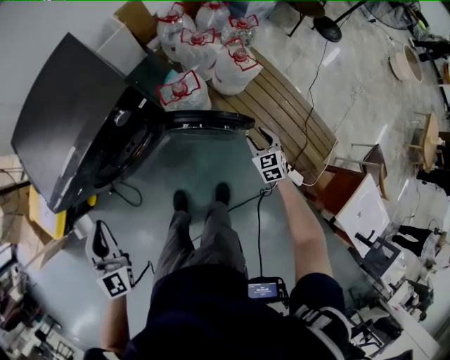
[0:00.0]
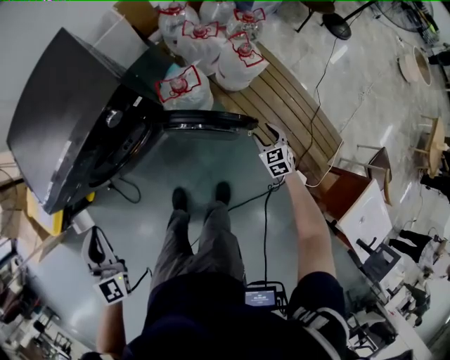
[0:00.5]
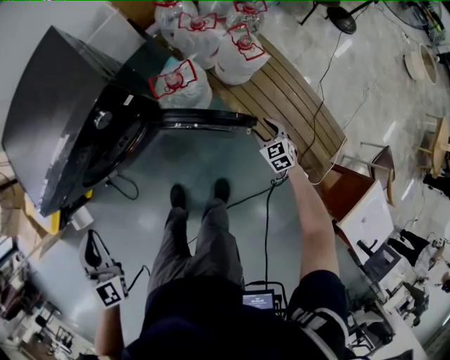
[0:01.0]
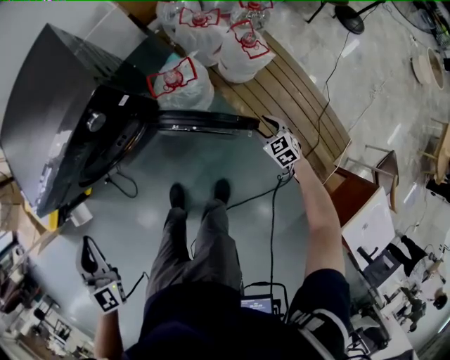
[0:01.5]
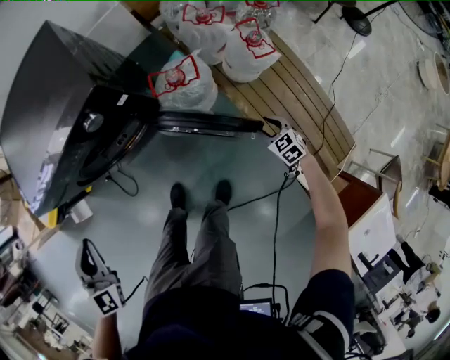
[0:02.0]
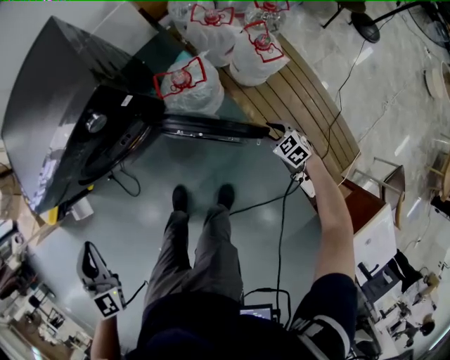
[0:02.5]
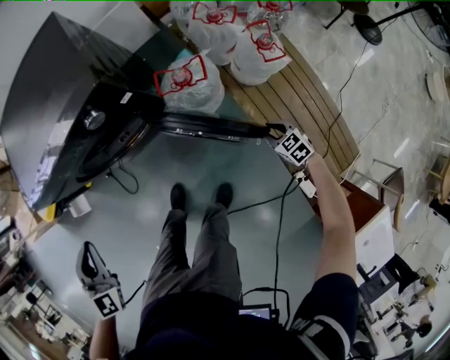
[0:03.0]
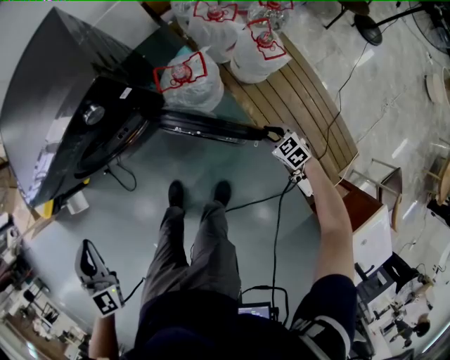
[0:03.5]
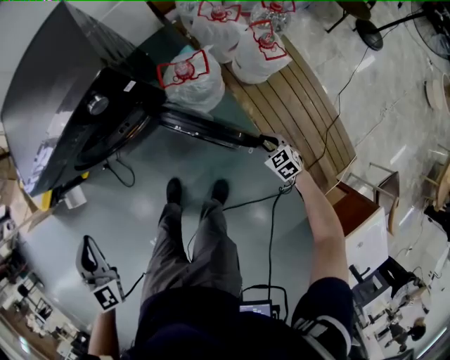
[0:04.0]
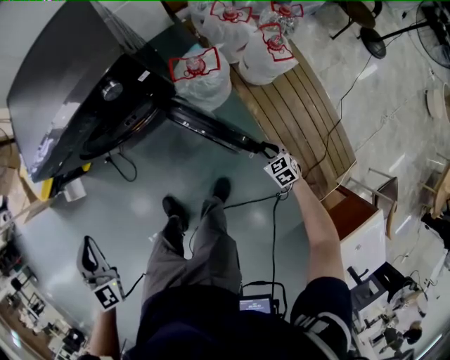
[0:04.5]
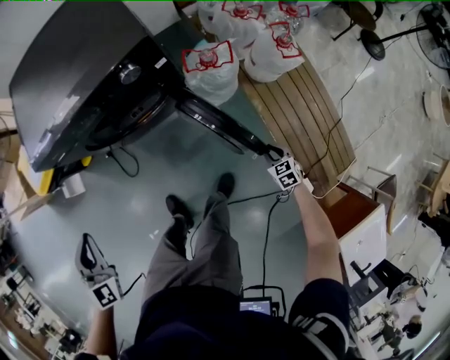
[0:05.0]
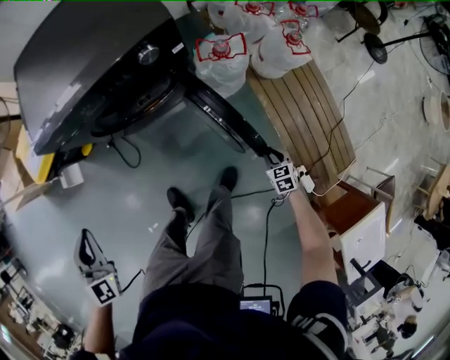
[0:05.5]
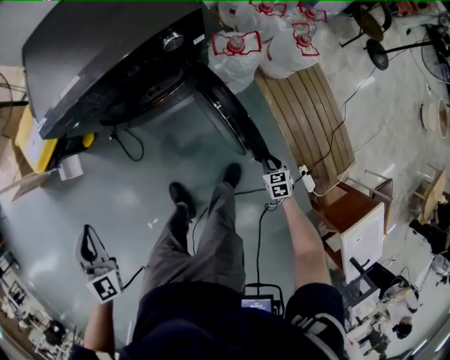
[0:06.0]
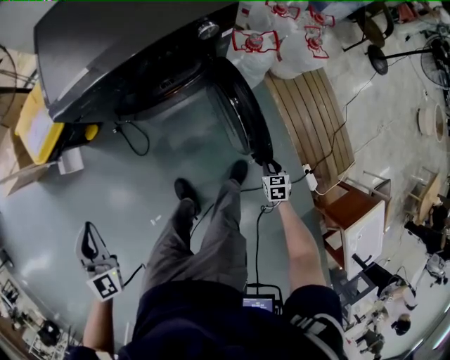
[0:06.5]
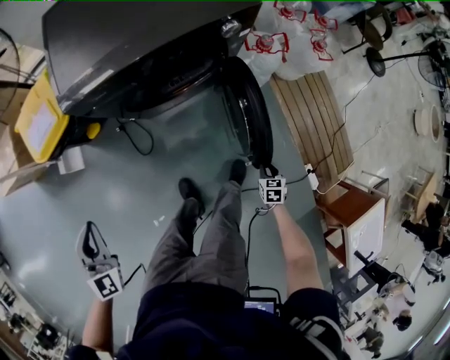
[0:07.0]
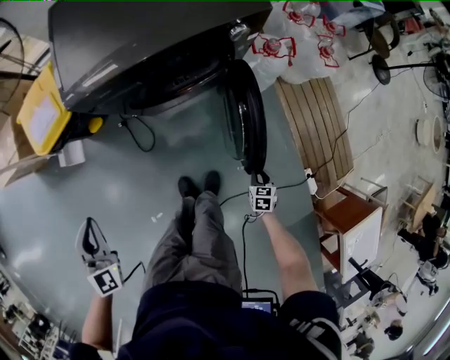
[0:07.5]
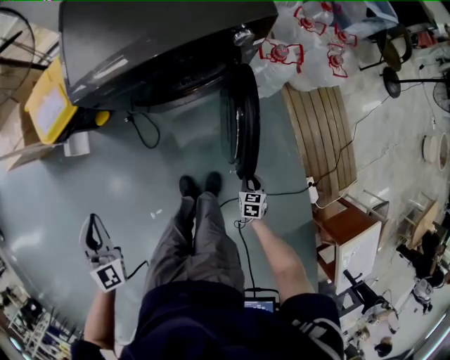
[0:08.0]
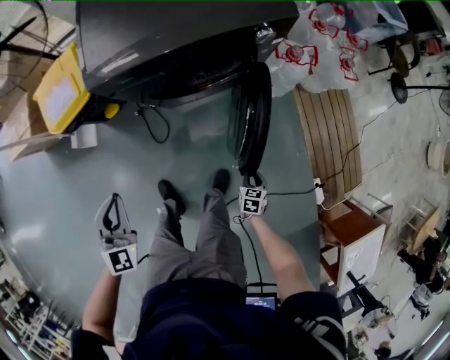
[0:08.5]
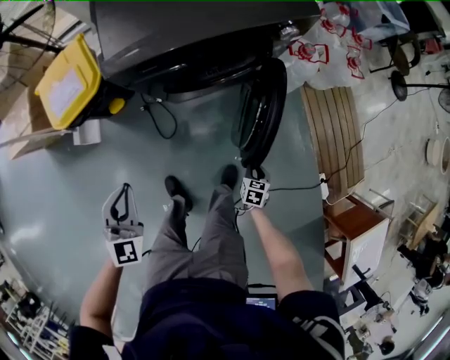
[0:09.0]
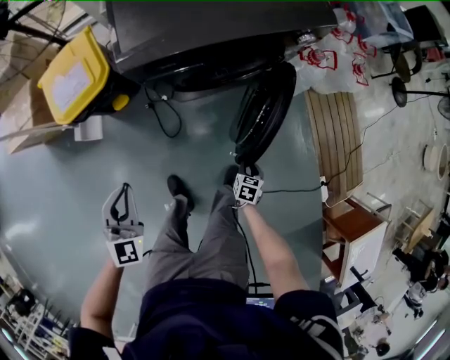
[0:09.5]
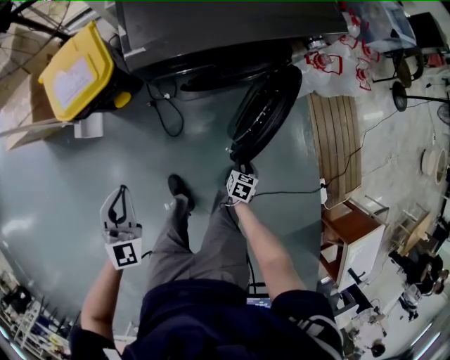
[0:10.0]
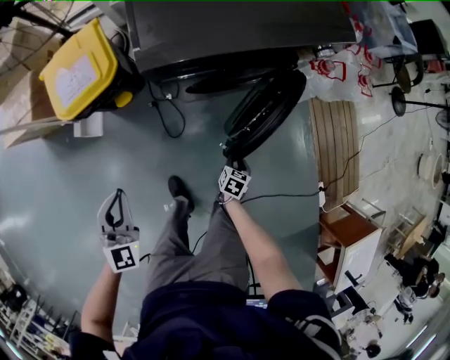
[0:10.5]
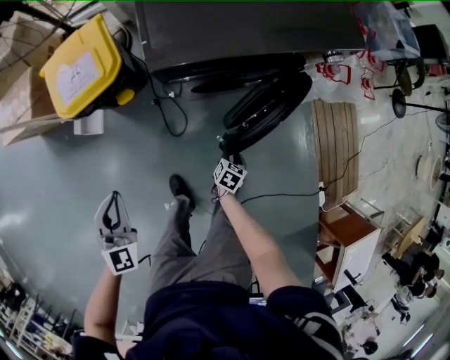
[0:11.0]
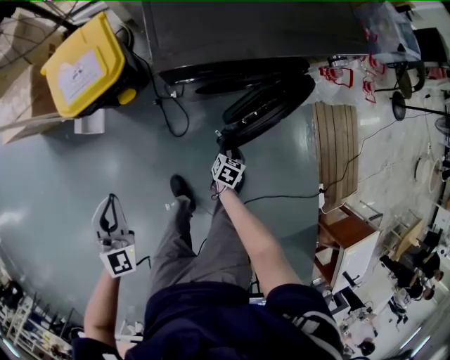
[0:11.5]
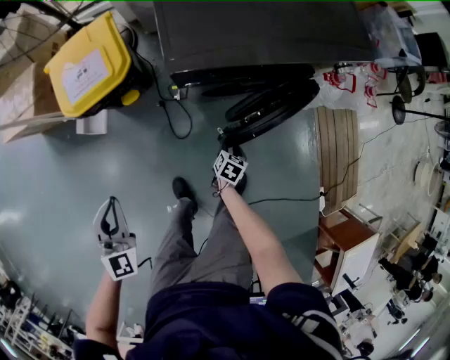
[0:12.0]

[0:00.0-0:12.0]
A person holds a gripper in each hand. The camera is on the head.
0:00.0 to 0:02.0: The right gripper heads downward and to the right, covering approximately 20 cm, and rotates approximately 30 degrees. The left gripper moves downward, some 5 cm.
0:02.0 to 0:04.0: The right gripper moves approximately 5 cm, and closes.
0:04.0 to 0:06.0: The right gripper shifts roughly 25 cm to the left and backward. Meanwhile the left gripper is displaced to the left by roughly 25 cm.
0:06.0 to 0:08.0: The left gripper moves to the left, about 10 cm, while the right gripper heads to the left, covering about 20 cm.
0:08.0 to 0:10.0: The left gripper moves to the left and downward, some 10 cm, while the right gripper goes about 20 cm to the left.
0:10.0 to 0:12.0: The left gripper goes some 10 cm to the left. Meanwhile the right gripper shifts about 15 cm to the left and forward.

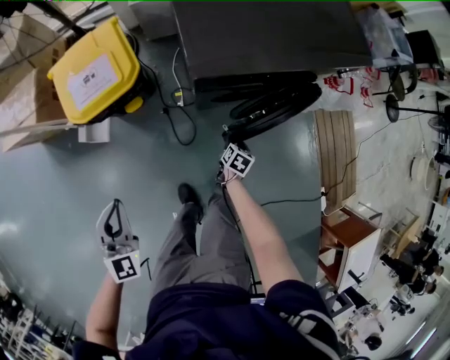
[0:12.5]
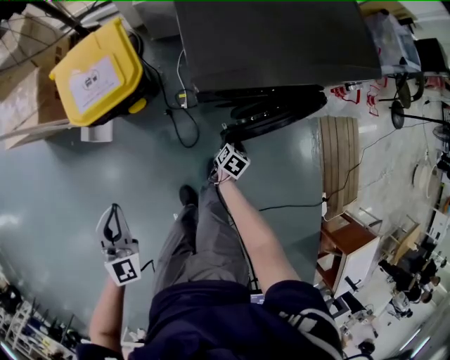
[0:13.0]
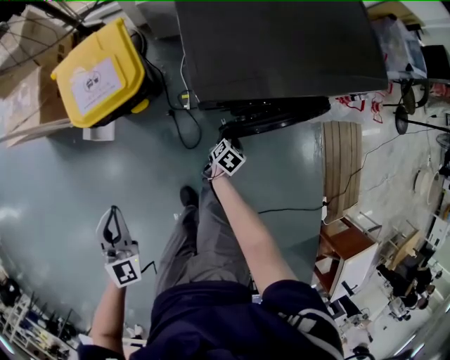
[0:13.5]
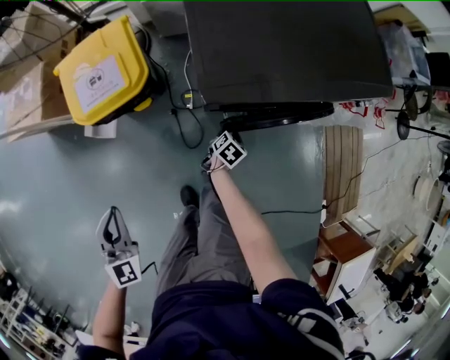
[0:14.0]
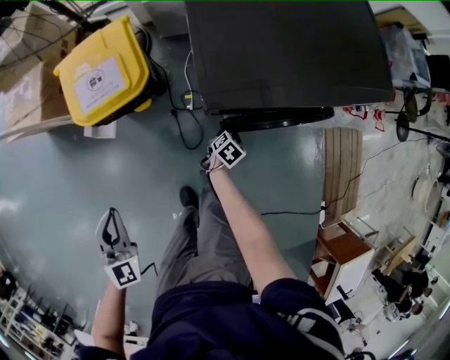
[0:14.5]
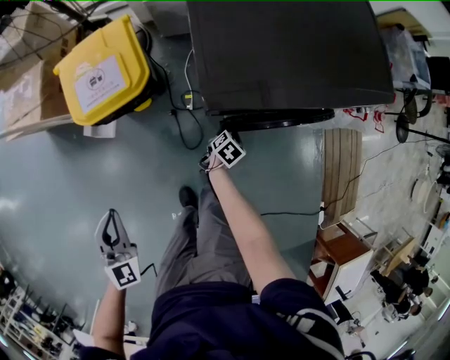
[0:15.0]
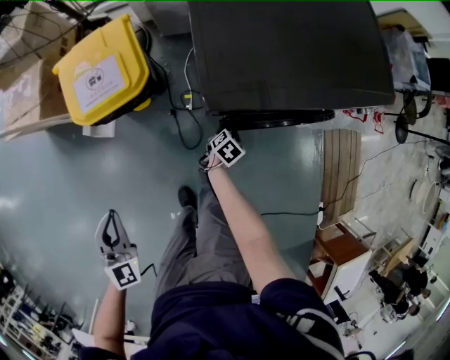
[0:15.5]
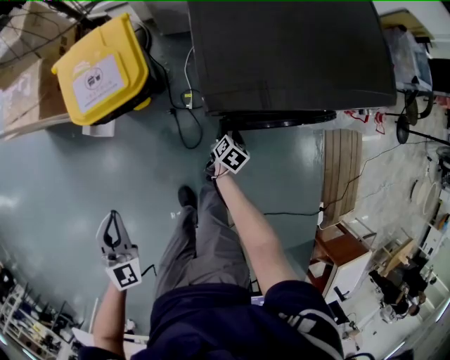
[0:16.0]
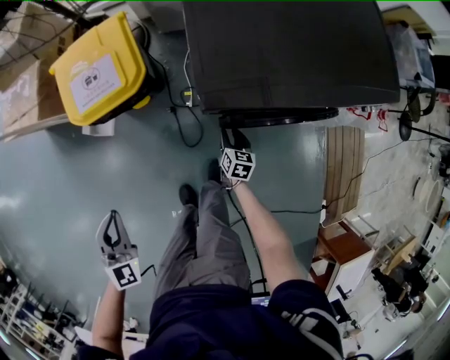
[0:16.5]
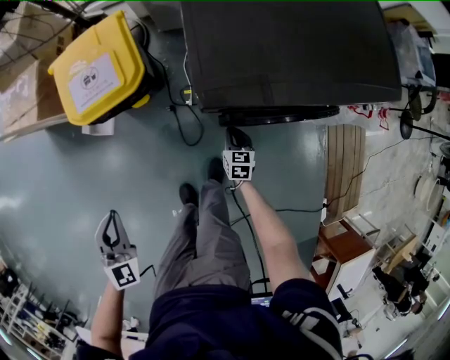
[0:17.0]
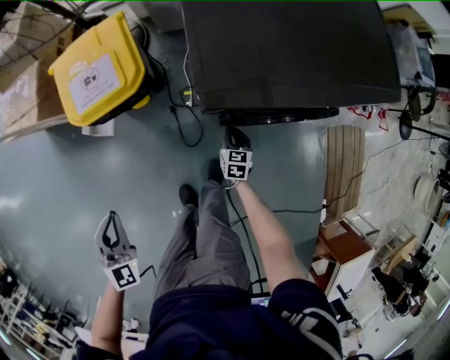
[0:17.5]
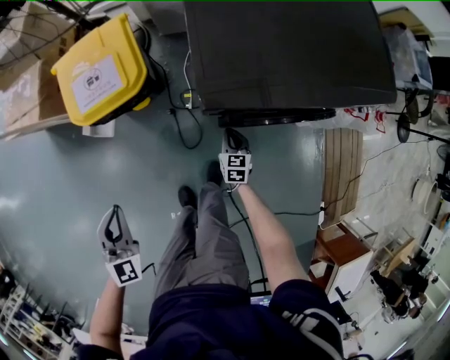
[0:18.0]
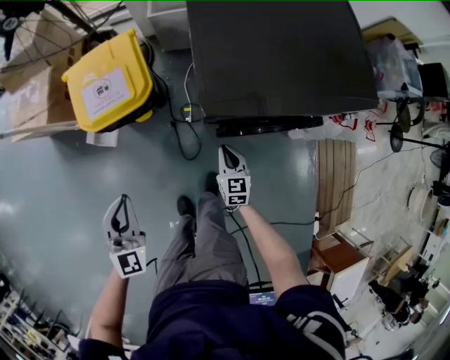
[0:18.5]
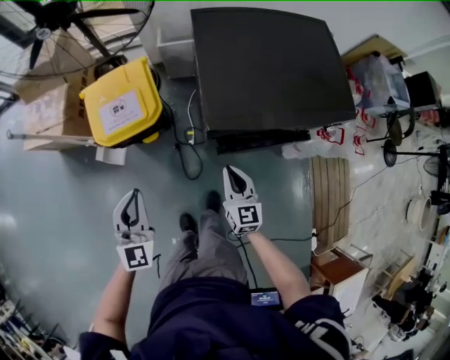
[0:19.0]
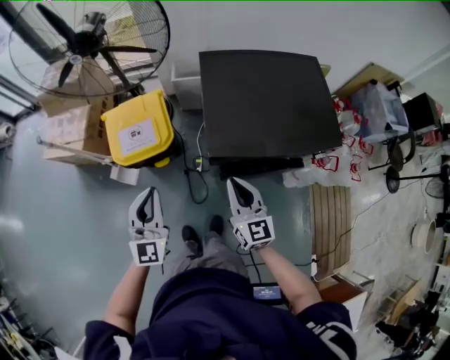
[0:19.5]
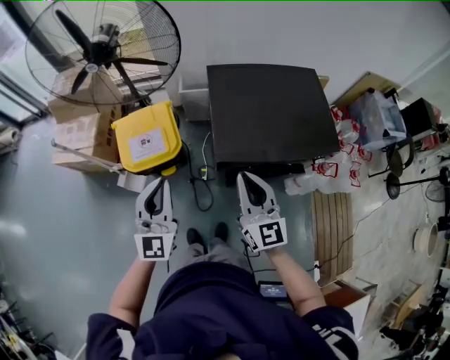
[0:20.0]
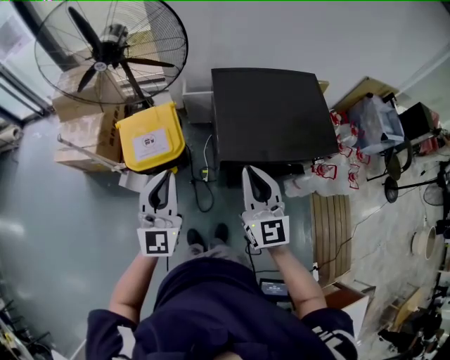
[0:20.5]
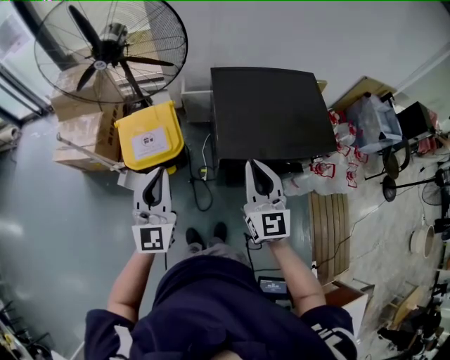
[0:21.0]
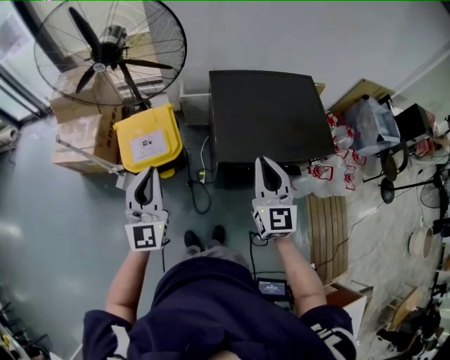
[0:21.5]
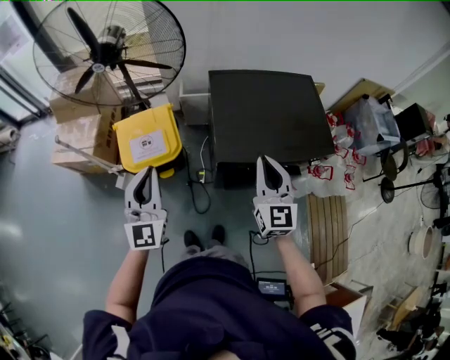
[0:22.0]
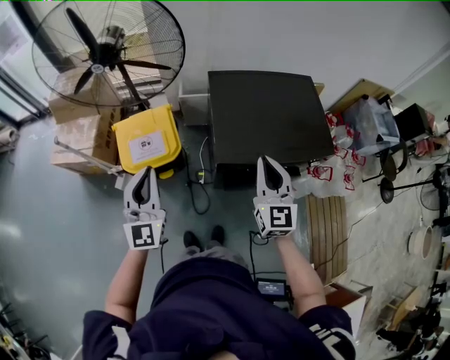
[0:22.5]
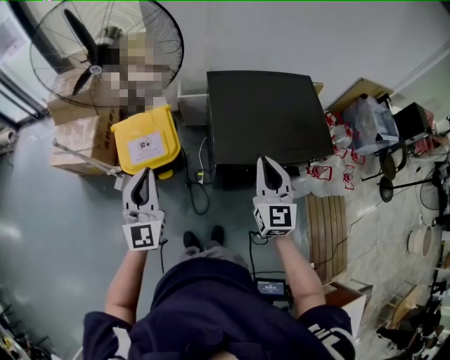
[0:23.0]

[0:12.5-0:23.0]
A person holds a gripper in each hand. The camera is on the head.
0:12.5 to 0:14.5: The right gripper shifts some 15 cm forward and to the left.
0:14.5 to 0:16.5: The right gripper rotates roughly 40 degrees.
0:16.5 to 0:19.0: The left gripper moves upward, approximately 15 cm, and rotates approximately 20 degrees. Meanwhile the right gripper travels upward by roughly 35 cm, swivels approximately 30 degrees, and closes.
0:19.0 to 0:21.0: Both grippers travel together upward, roughly 30 cm. The right gripper turns by roughly 20 degrees.
0:21.0 to 0:23.0: The right gripper changes place by about 5 cm.

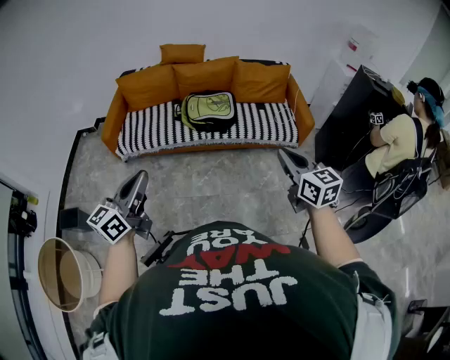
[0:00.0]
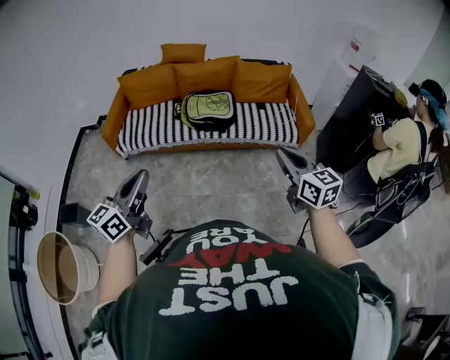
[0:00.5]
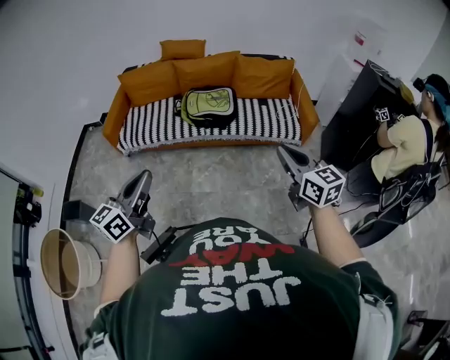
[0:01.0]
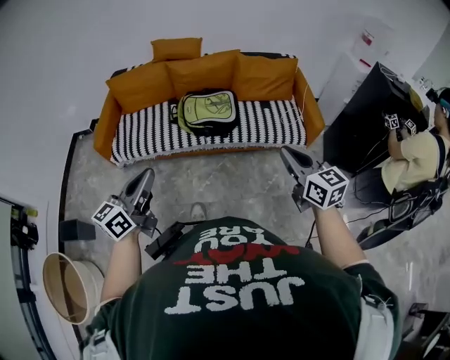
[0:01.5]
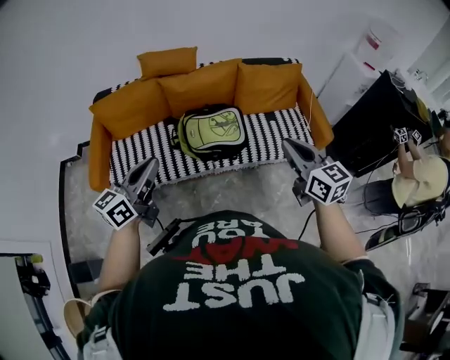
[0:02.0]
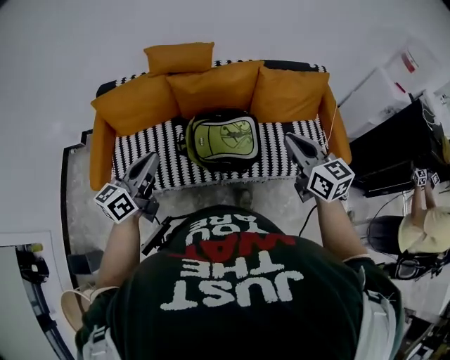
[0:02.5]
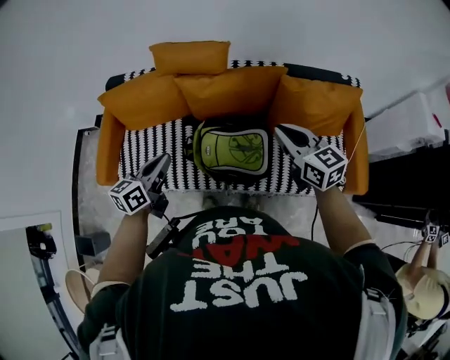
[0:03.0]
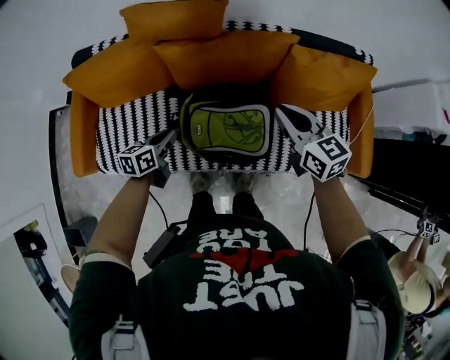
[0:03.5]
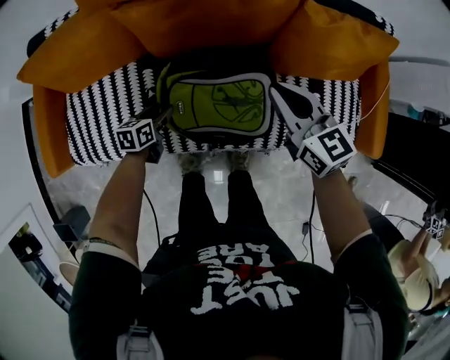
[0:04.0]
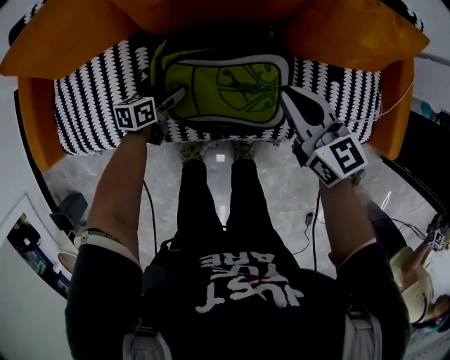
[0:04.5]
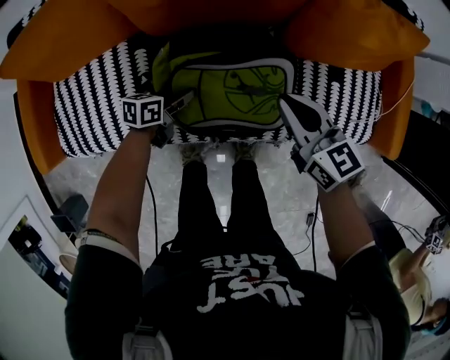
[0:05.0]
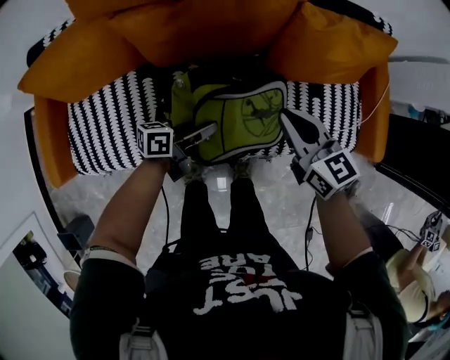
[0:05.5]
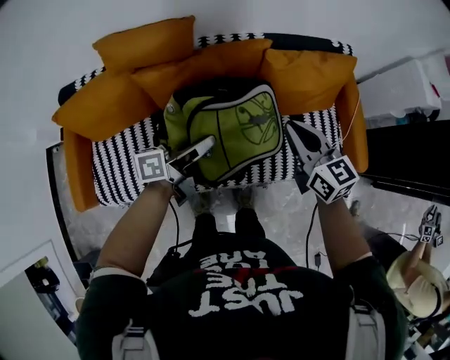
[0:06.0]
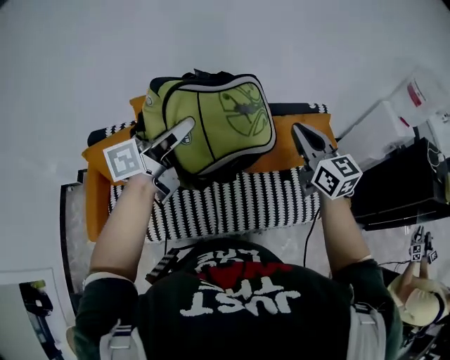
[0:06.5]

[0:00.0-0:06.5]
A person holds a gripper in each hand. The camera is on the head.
0:00.0 to 0:02.0: The grippers both shift forward by some 40 cm.
0:02.0 to 0:04.5: The left gripper heads downward and forward, covering approximately 70 cm, angles its fingers downward, by some 40 degrees, and opens; the right gripper shifts some 50 cm forward and downward, and changes its angle by some 20 degrees.
0:04.5 to 0:06.5: The right gripper moves upward, about 40 cm, and rotates roughly 30 degrees; the left gripper shifts about 70 cm upward, angles its fingers upward, by approximately 50 degrees, and closes up.
